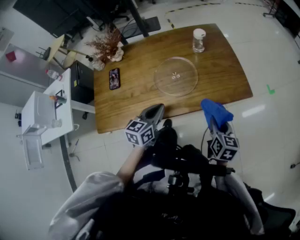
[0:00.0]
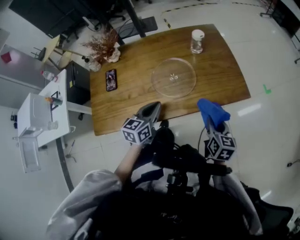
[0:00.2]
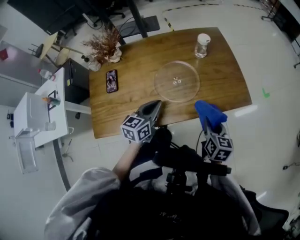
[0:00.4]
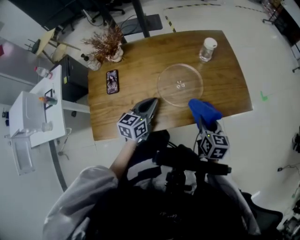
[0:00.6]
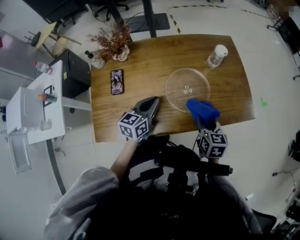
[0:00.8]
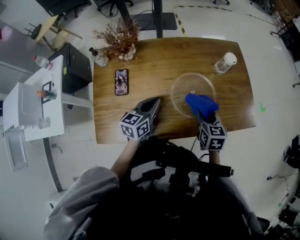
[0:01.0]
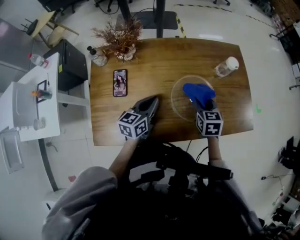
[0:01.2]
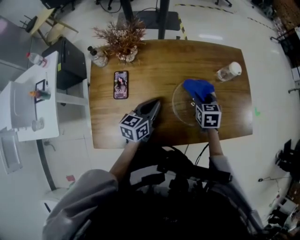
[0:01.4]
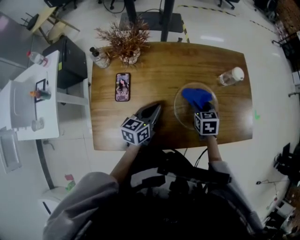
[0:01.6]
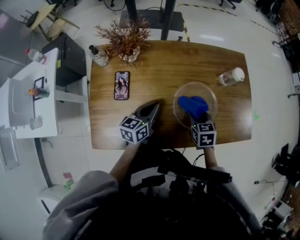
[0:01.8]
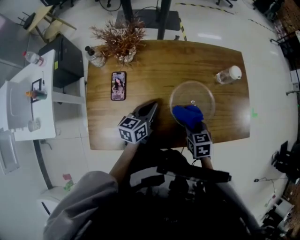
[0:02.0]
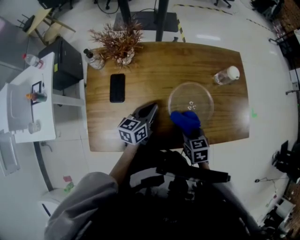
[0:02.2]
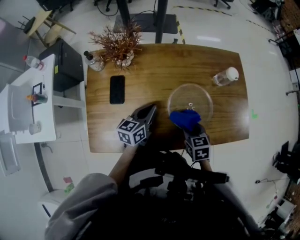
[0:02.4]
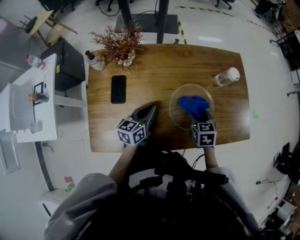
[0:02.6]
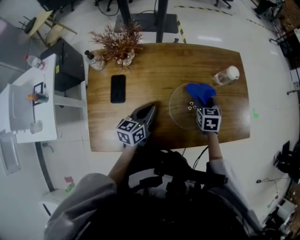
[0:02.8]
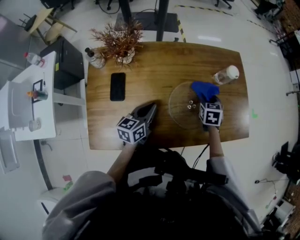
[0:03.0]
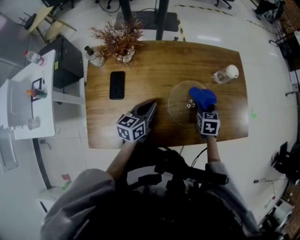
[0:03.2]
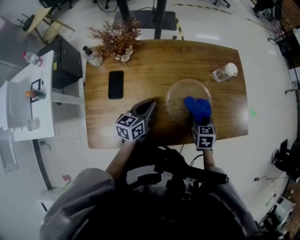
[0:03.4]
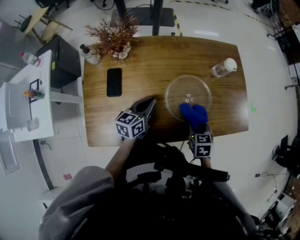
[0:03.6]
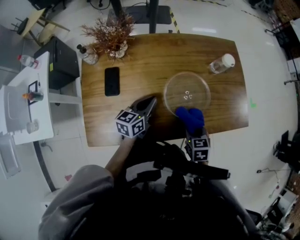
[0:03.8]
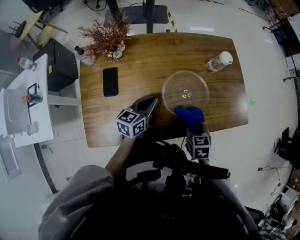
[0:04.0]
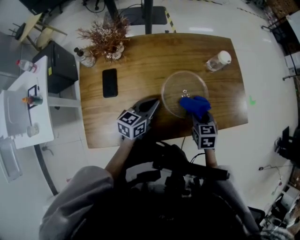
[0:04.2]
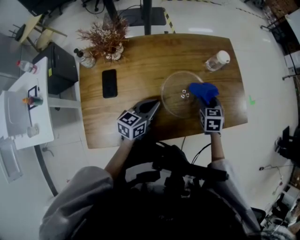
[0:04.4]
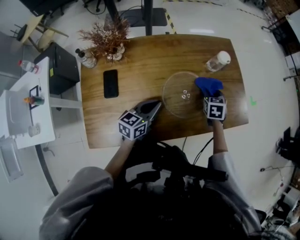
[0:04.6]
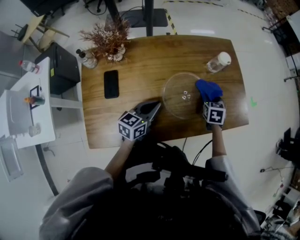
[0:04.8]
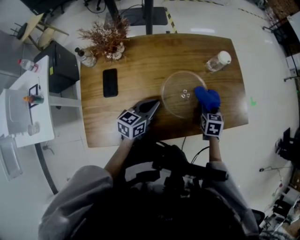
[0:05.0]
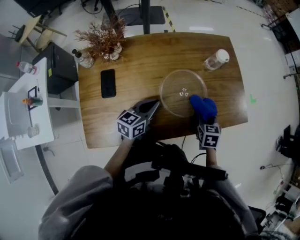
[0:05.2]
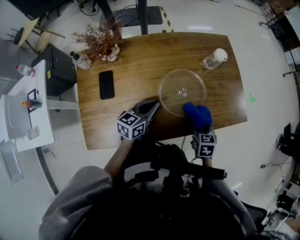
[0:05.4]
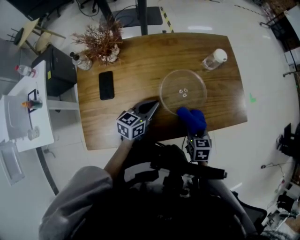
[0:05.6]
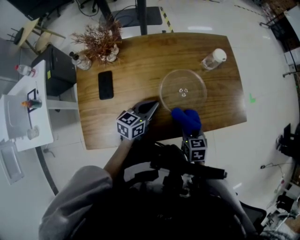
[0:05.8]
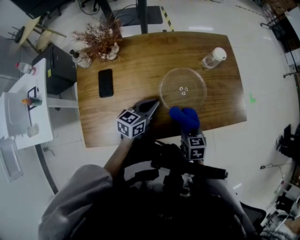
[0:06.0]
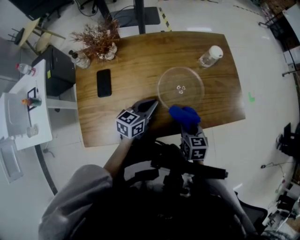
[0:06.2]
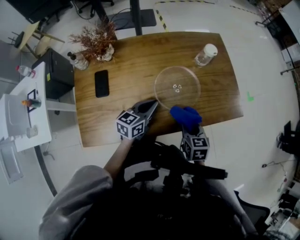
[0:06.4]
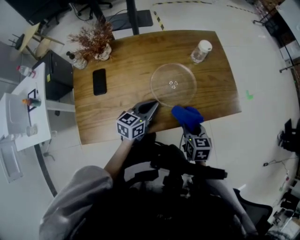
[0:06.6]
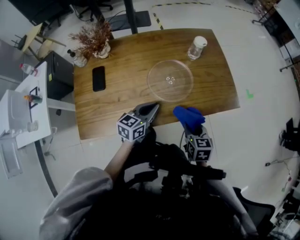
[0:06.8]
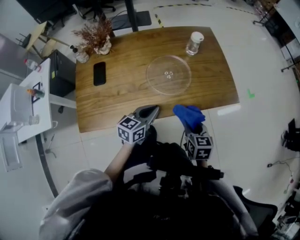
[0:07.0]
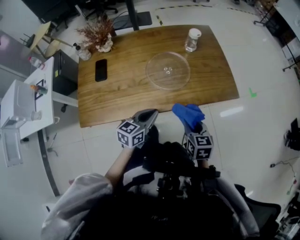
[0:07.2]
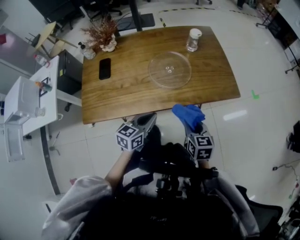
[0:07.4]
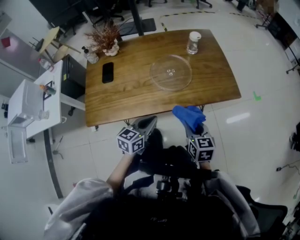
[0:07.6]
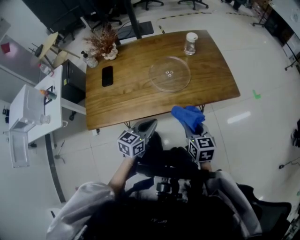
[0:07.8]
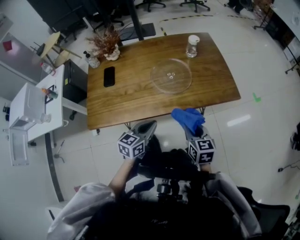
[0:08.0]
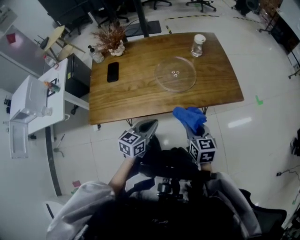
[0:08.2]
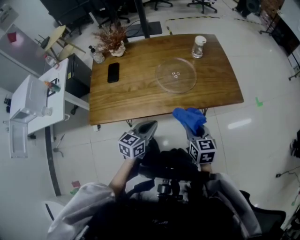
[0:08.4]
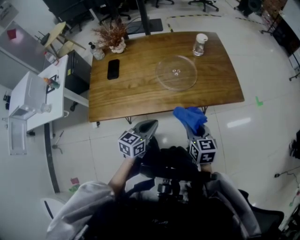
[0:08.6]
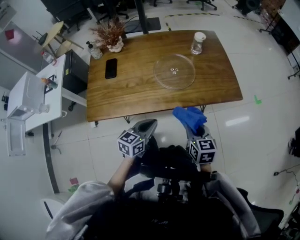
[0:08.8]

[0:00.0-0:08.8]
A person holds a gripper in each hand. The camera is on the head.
0:00.0 to 0:01.4: The left gripper shifts about 20 cm to the left and forward; the right gripper travels to the left and forward by approximately 35 cm, and rotates some 30 degrees.
0:01.4 to 0:03.0: The right gripper goes roughly 5 cm to the right, and moves some 15 cm backward and comes back.
0:03.0 to 0:04.4: The right gripper reaches approximately 20 cm backward, then returns; the left gripper heads to the right, covering some 5 cm.
0:04.4 to 0:05.8: The right gripper is displaced backward by about 15 cm.
0:05.8 to 0:07.4: The grippers both shift backward and to the right by approximately 20 cm.
0:07.4 to 0:08.8: There are only small adjustments of the grippers.

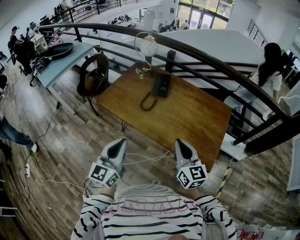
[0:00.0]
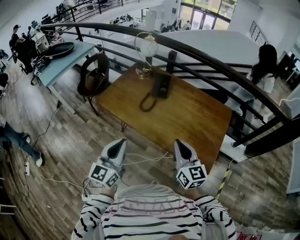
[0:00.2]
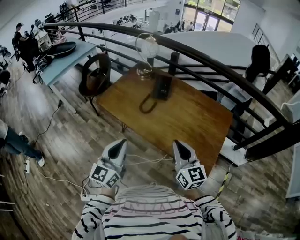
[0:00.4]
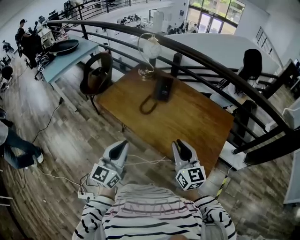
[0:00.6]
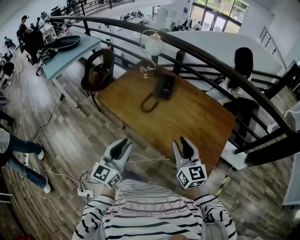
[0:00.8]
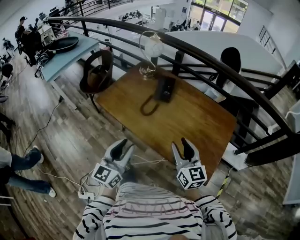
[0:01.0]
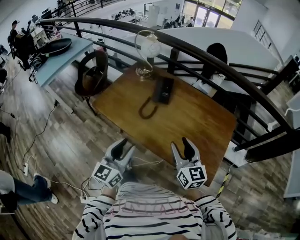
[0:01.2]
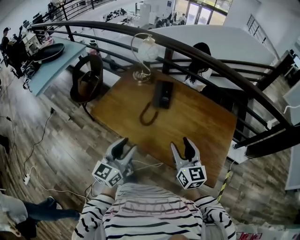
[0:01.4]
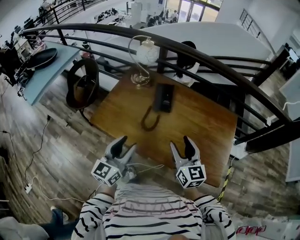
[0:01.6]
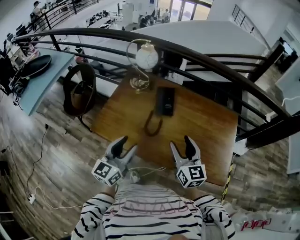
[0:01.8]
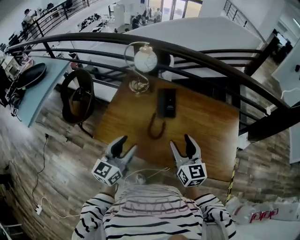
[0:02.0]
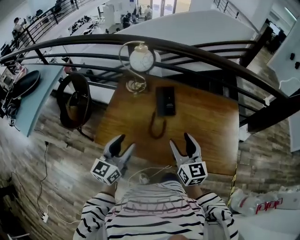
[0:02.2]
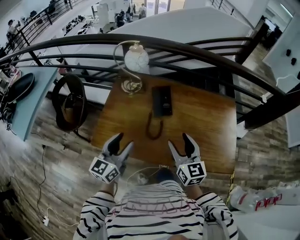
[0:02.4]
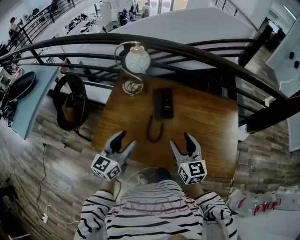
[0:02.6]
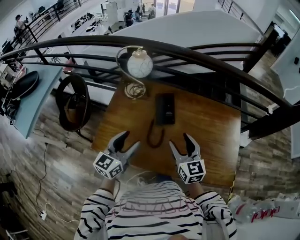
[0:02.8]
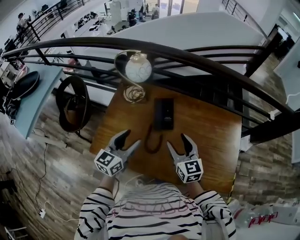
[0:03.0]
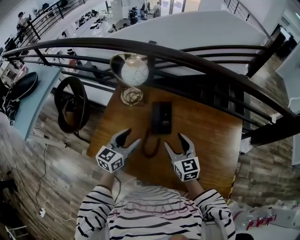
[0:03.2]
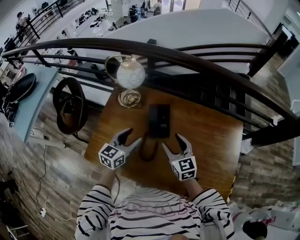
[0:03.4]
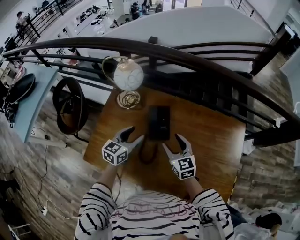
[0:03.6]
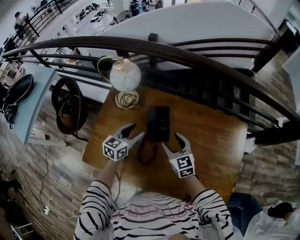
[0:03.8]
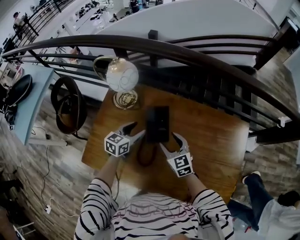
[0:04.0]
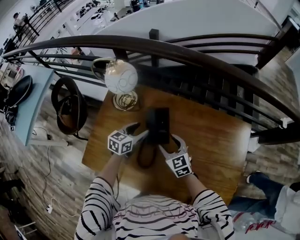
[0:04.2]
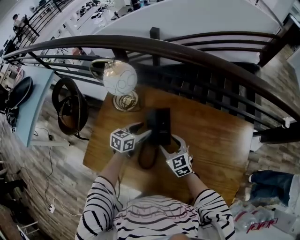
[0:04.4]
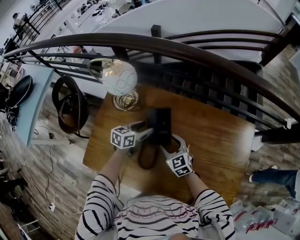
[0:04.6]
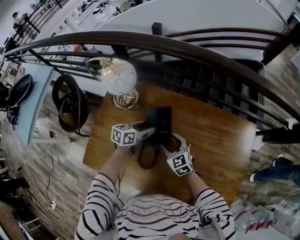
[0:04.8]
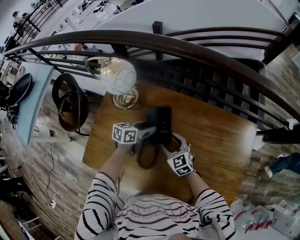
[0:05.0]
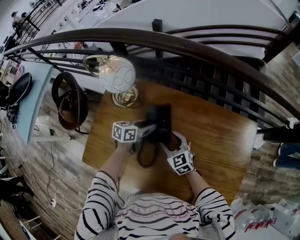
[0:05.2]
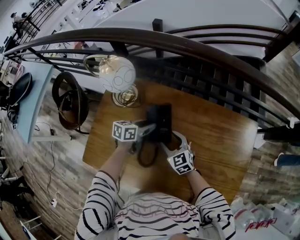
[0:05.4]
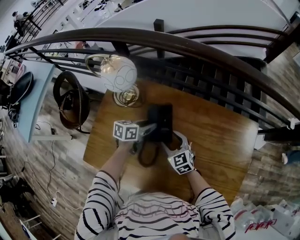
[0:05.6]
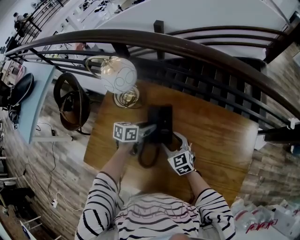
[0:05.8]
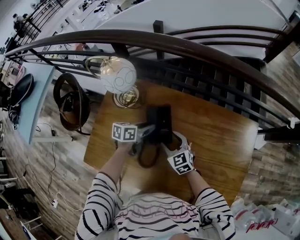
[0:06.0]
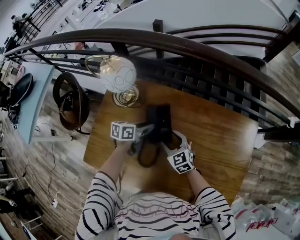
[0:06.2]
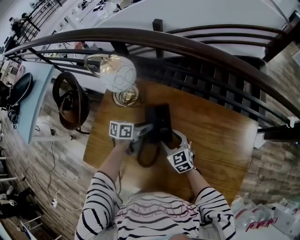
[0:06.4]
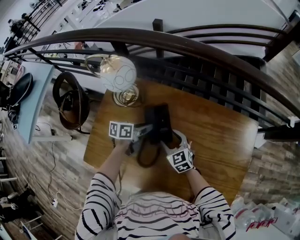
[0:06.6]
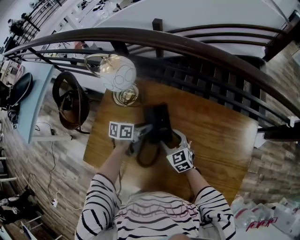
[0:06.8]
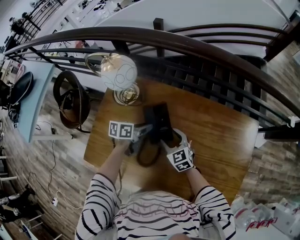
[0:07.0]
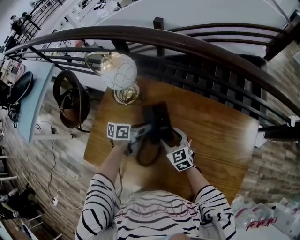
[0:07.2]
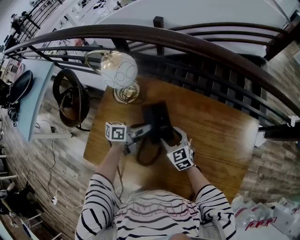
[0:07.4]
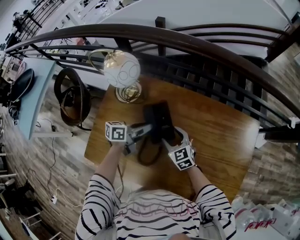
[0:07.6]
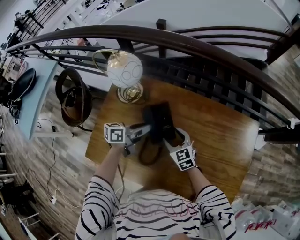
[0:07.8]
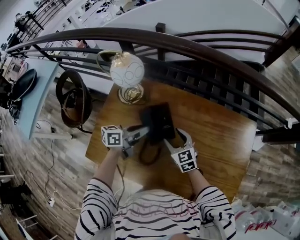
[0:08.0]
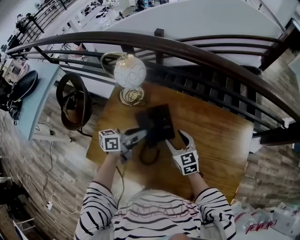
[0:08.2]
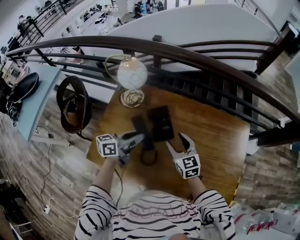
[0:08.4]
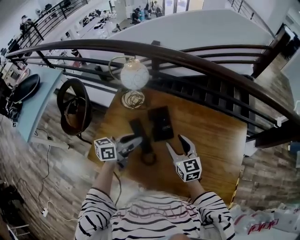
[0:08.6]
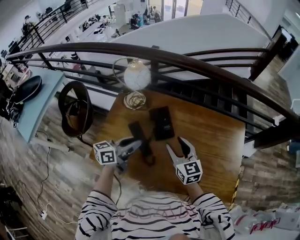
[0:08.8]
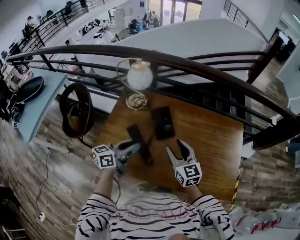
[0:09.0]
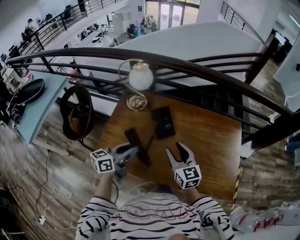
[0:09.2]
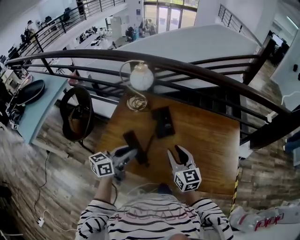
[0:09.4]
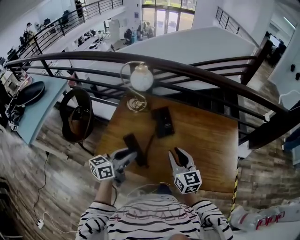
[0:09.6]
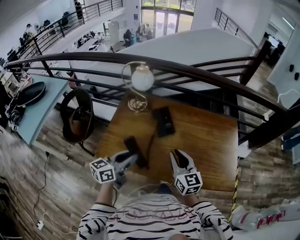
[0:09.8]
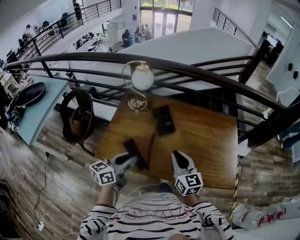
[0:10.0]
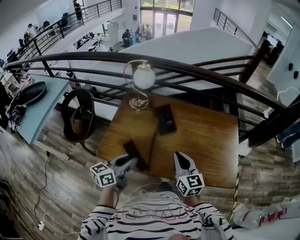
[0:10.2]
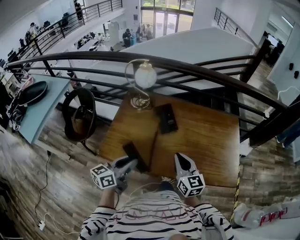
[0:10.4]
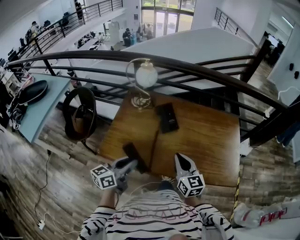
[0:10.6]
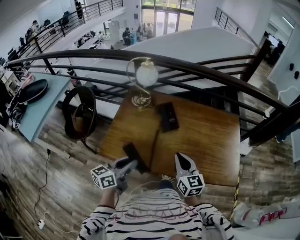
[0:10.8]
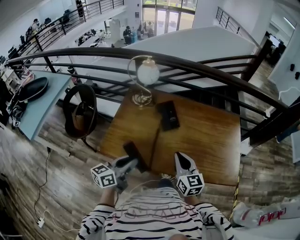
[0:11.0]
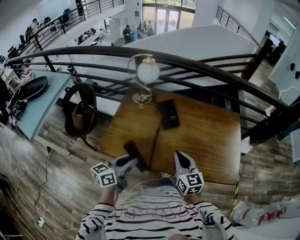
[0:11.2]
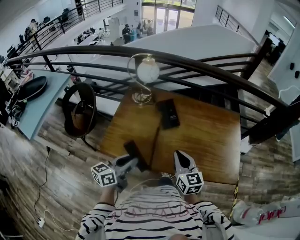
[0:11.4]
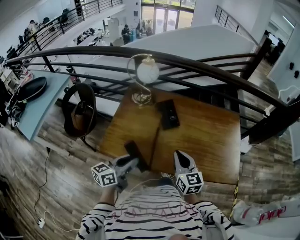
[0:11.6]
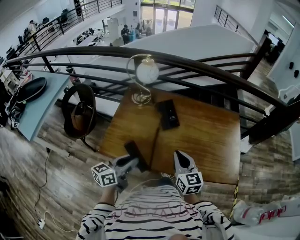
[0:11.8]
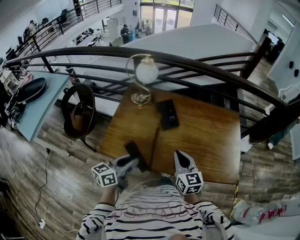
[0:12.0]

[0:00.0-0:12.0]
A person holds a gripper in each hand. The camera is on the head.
0:00.0 to 0:01.6: The right gripper is displaced forward and to the left by about 25 cm, and opens; the left gripper is displaced forward by some 25 cm, and opens.
0:01.6 to 0:03.0: Both grippers move forward, approximately 20 cm.
0:03.0 to 0:04.4: The right gripper is displaced downward and forward by approximately 25 cm, and changes its angle by roughly 20 degrees, while the left gripper goes roughly 30 cm forward and downward, and turns by approximately 30 degrees.
0:04.4 to 0:06.0: The left gripper turns by some 20 degrees, and closes its fingers.
0:06.0 to 0:07.6: The left gripper moves roughly 5 cm.
0:07.6 to 0:09.0: The right gripper moves upward and backward, about 25 cm, and turns by approximately 20 degrees. The left gripper travels backward and upward by roughly 30 cm, and rotates some 20 degrees.
0:09.0 to 0:10.4: Both grippers travel together backward, roughly 15 cm. The right gripper closes up.
0:10.4 to 0:12.0: There are only small adjustments of the grippers.

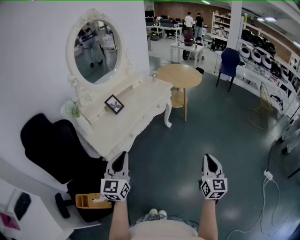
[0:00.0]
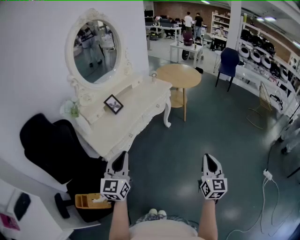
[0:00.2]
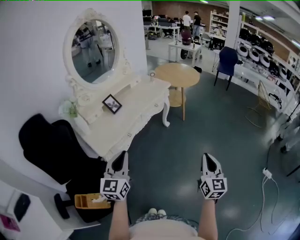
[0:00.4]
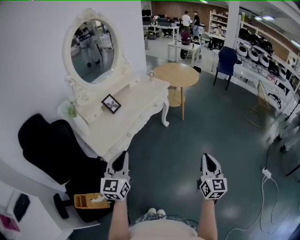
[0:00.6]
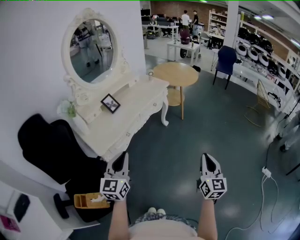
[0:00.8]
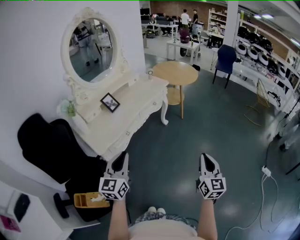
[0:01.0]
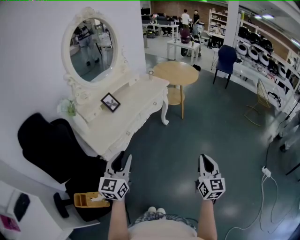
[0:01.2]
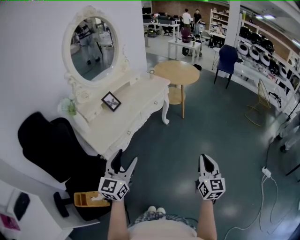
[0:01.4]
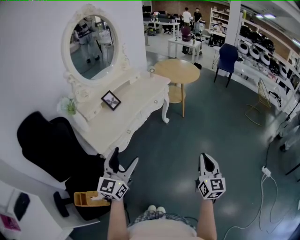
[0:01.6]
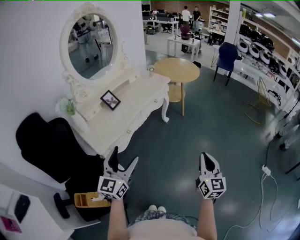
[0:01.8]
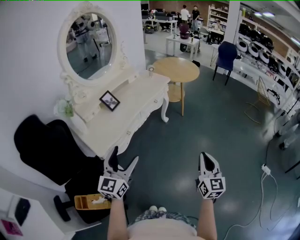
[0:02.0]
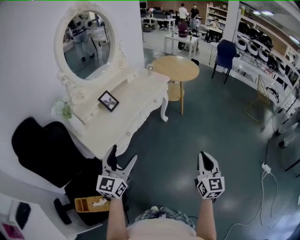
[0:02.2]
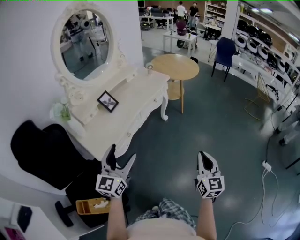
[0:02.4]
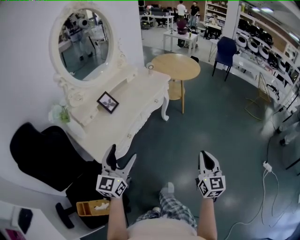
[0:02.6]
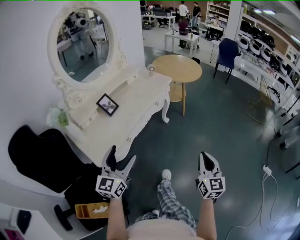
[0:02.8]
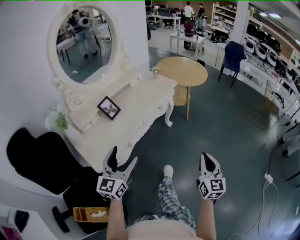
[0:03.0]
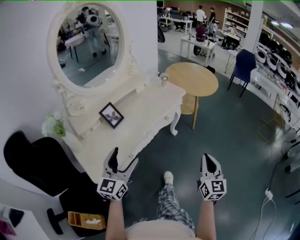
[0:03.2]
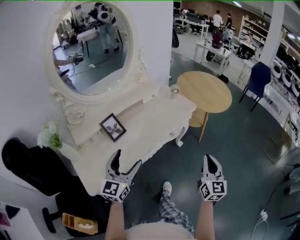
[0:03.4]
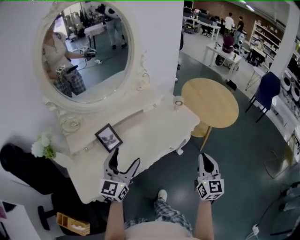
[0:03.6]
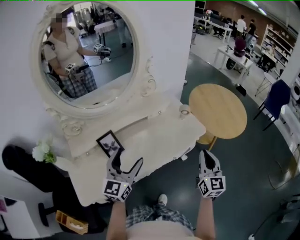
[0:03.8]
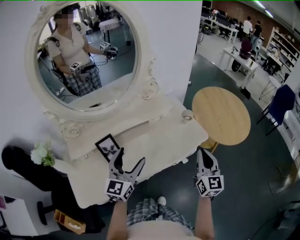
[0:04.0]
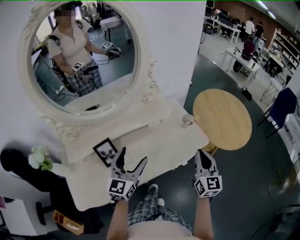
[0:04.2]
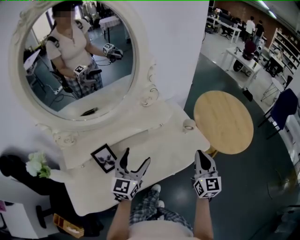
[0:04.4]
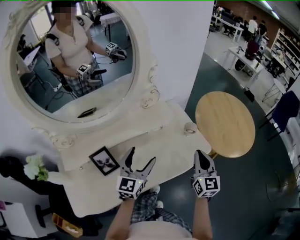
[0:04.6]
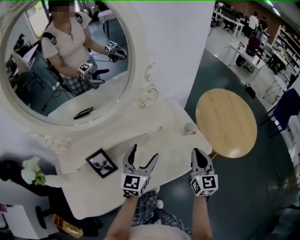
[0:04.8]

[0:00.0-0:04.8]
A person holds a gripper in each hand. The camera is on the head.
0:00.0 to 0:01.6: The left gripper opens its fingers.
0:01.6 to 0:03.2: The two grippers go roughly 25 cm forward.
0:03.2 to 0:04.8: The pair of grippers is taken forward, some 50 cm. The left gripper swivels approximately 20 degrees. Meanwhile the right gripper rotates roughly 20 degrees.
